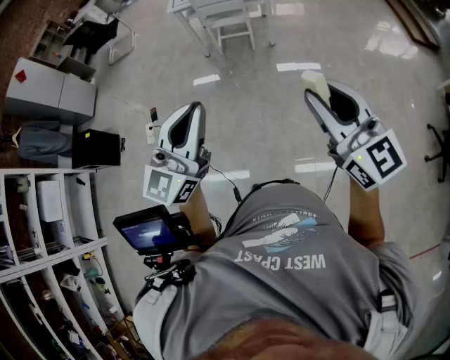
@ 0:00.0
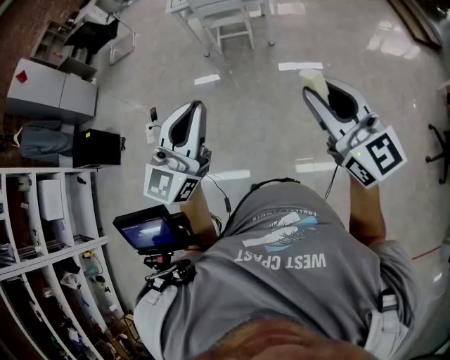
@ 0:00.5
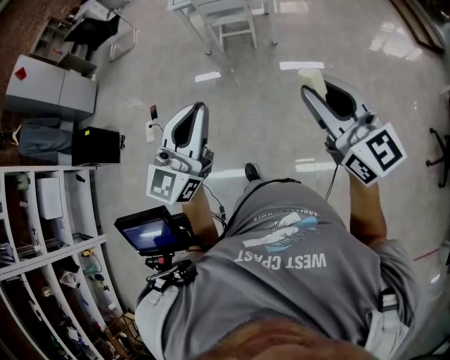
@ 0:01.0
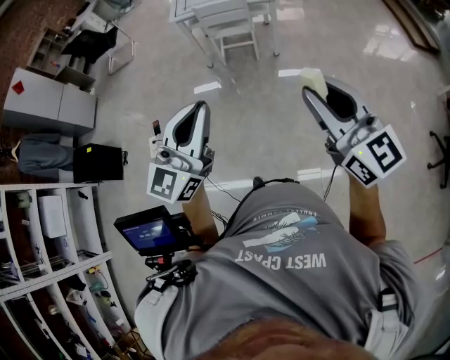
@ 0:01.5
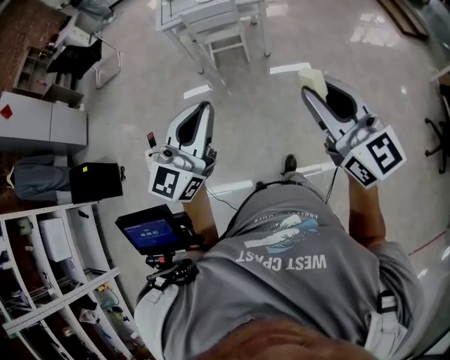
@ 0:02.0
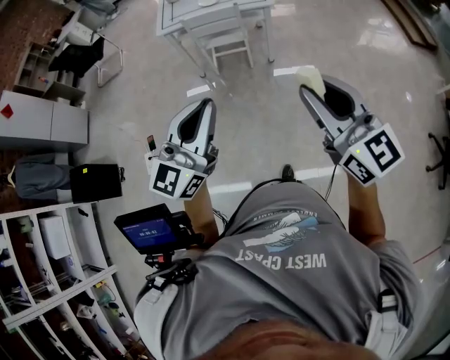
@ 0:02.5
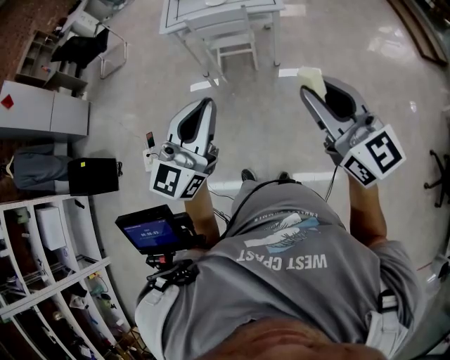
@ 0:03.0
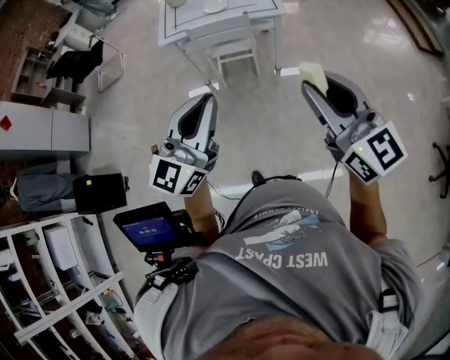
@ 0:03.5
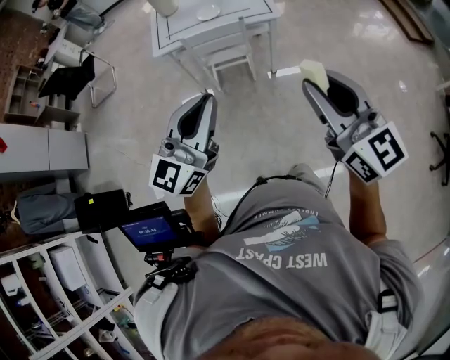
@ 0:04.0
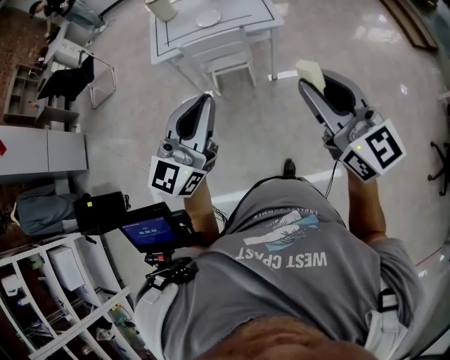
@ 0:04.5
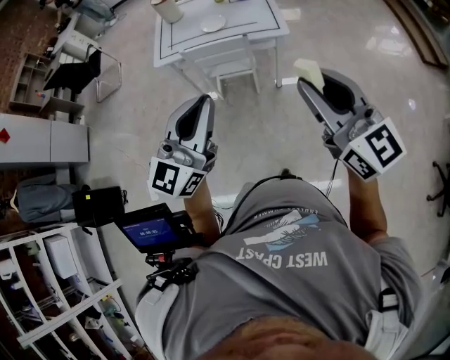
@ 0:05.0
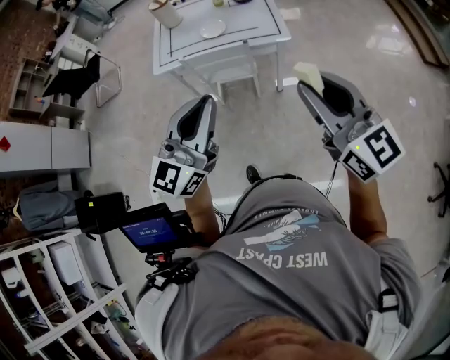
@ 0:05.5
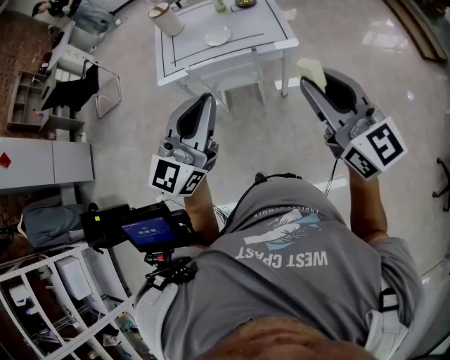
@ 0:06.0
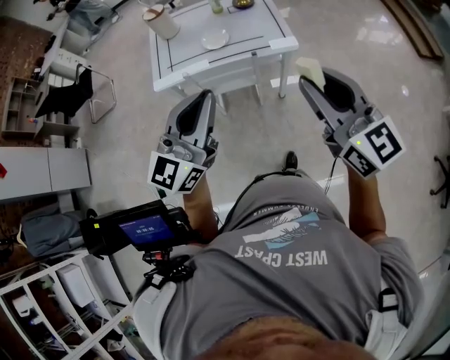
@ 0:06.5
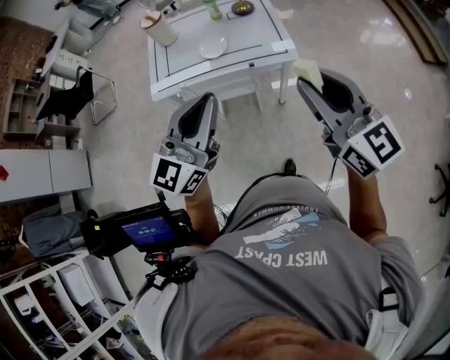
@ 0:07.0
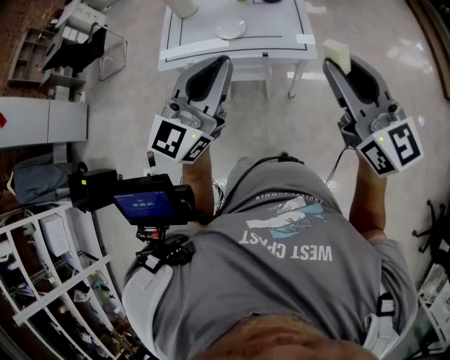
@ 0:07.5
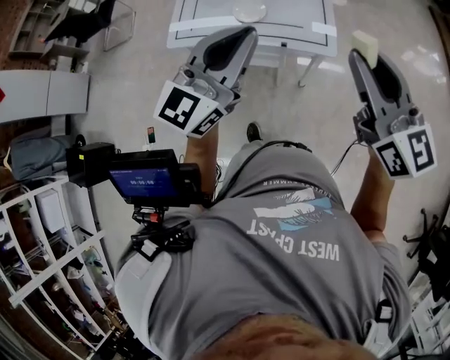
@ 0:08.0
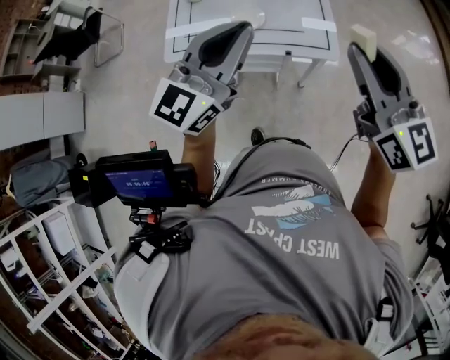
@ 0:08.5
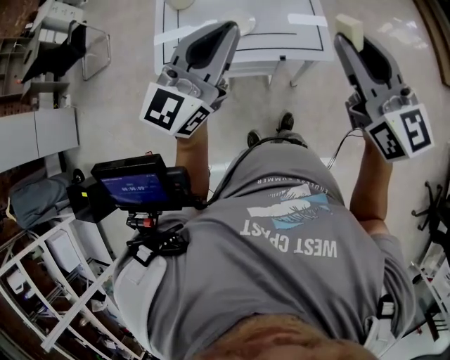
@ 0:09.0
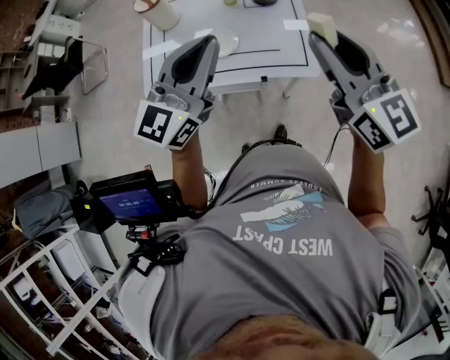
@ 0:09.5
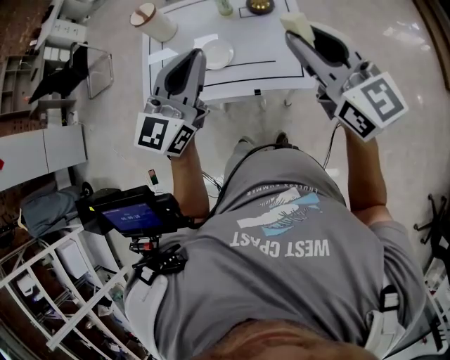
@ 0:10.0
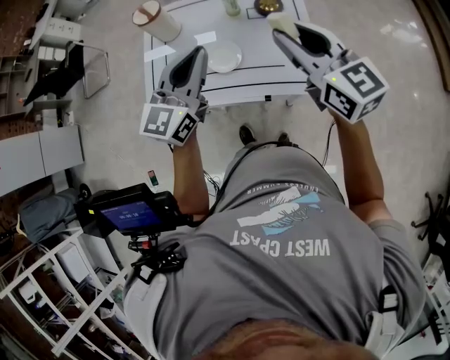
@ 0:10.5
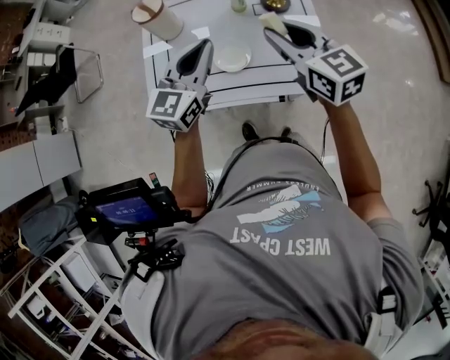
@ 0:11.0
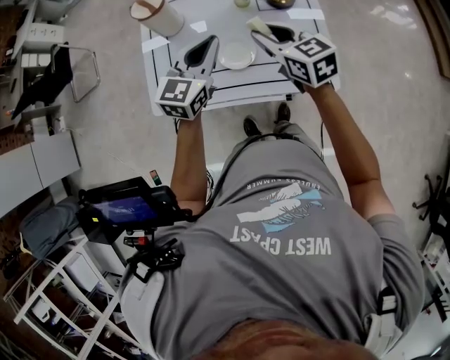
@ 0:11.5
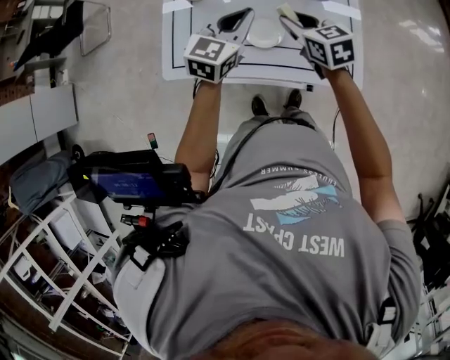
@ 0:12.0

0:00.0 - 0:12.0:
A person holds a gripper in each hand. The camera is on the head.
0:00.0 - 0:02.0: Both grippers move forward, approximately 15 cm.
0:02.0 - 0:04.0: Both grippers travel together forward, some 25 cm.
0:04.0 - 0:06.0: The two grippers go approximately 20 cm forward.
0:06.0 - 0:08.0: The two grippers go about 20 cm forward.
0:08.0 - 0:10.0: The grippers both shift forward by some 20 cm.
0:10.0 - 0:12.0: The two grippers go roughly 30 cm downward, forward and to the left. The right gripper angles its fingers downward, by about 30 degrees, while the left gripper swivels some 20 degrees.

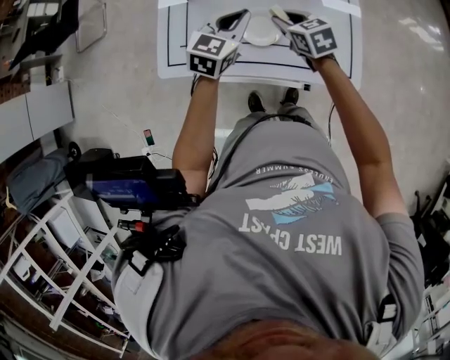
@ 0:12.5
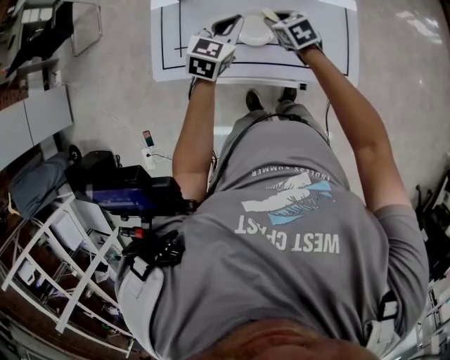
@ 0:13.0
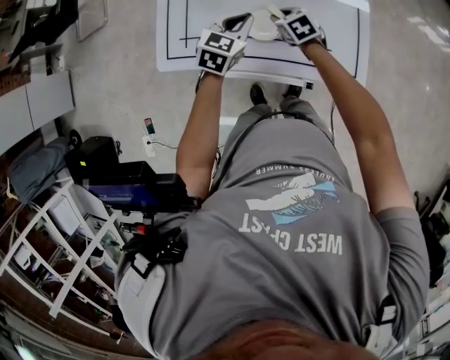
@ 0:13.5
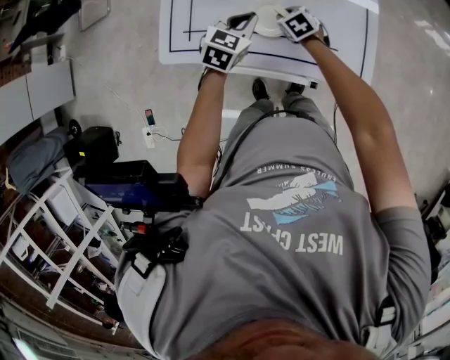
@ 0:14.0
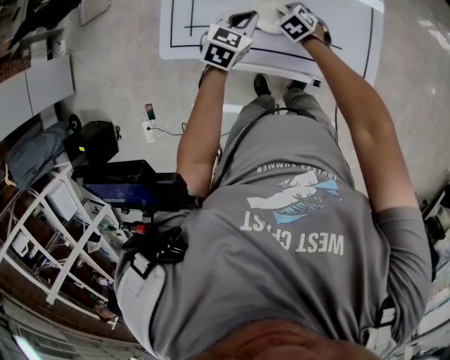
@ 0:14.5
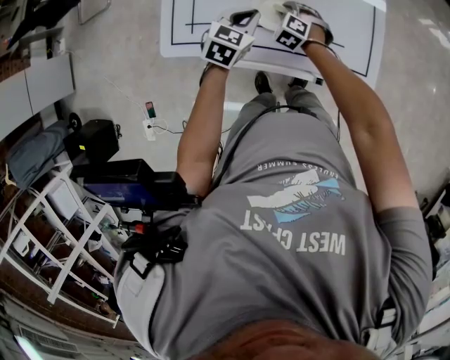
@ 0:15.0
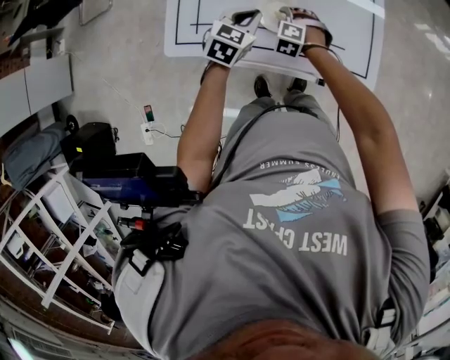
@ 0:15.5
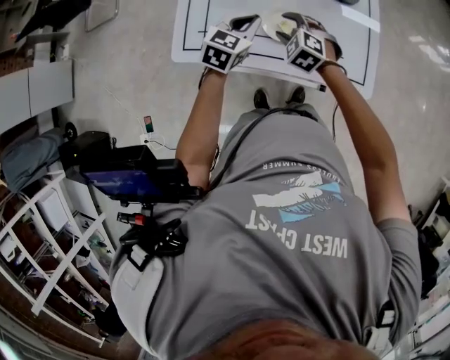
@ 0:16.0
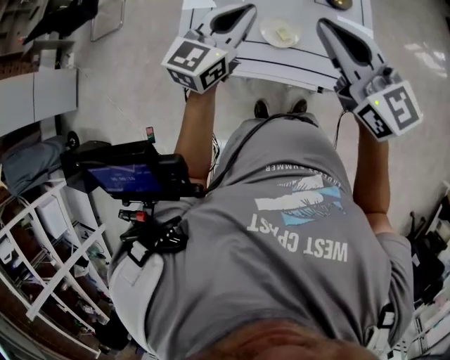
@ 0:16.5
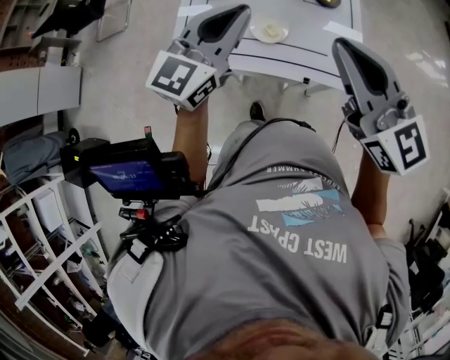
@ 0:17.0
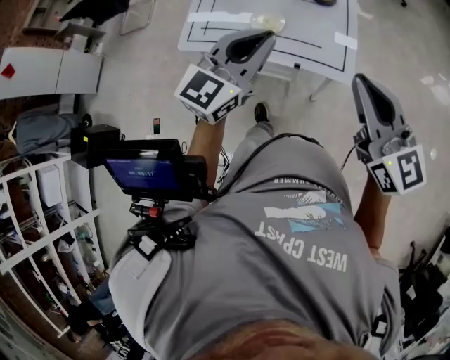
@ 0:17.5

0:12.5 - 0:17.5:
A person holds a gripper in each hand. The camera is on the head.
0:12.5 - 0:15.0: The left gripper shifts about 10 cm downward, while the right gripper travels downward by roughly 15 cm, and twists about 40 degrees counterclockwise, seen from behind.
0:15.0 - 0:17.5: The right gripper goes about 60 cm upward, backward and to the right, tips its fingers upward by roughly 60 degrees, and closes. Meanwhile the left gripper shifts approximately 40 cm upward and backward, and tilts its fingers approximately 40 degrees upward.

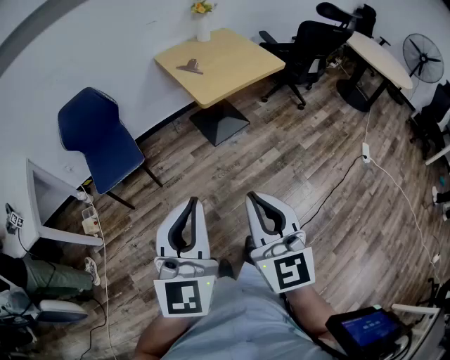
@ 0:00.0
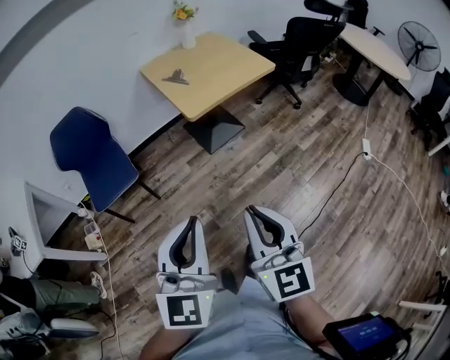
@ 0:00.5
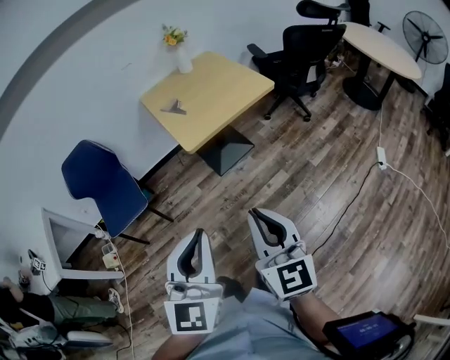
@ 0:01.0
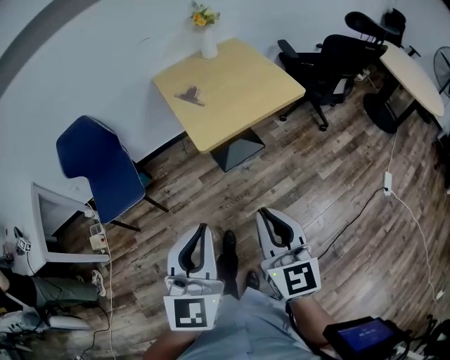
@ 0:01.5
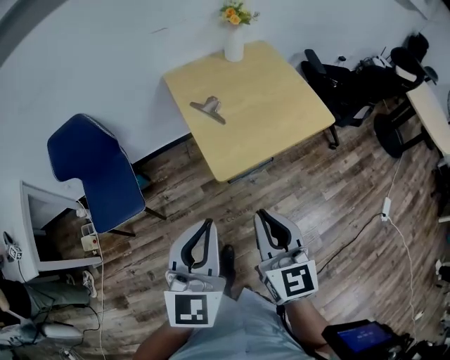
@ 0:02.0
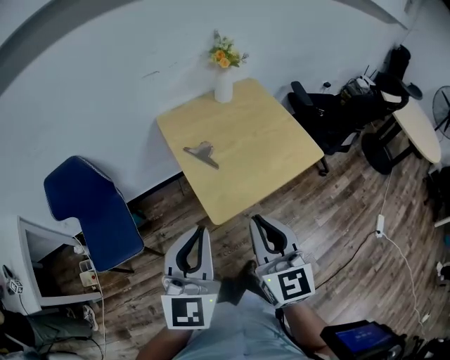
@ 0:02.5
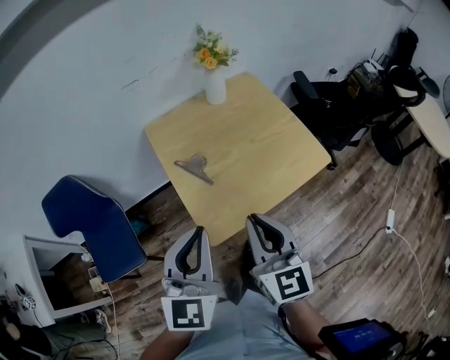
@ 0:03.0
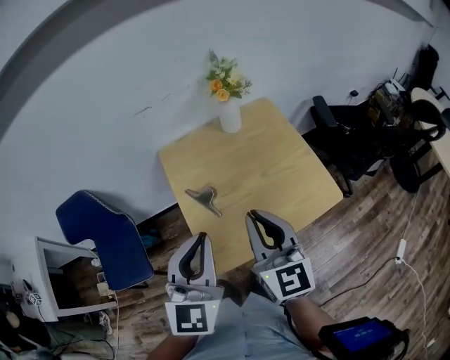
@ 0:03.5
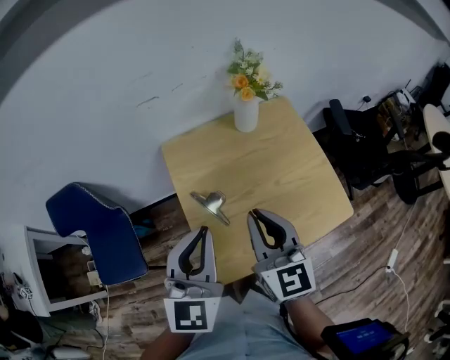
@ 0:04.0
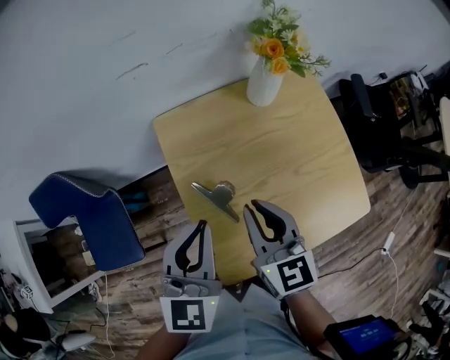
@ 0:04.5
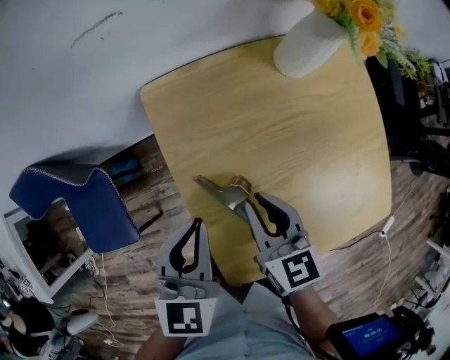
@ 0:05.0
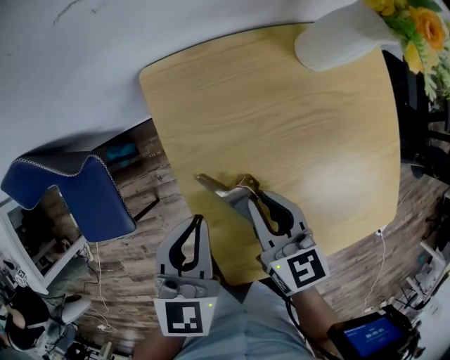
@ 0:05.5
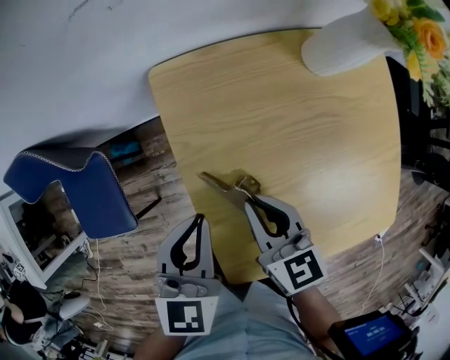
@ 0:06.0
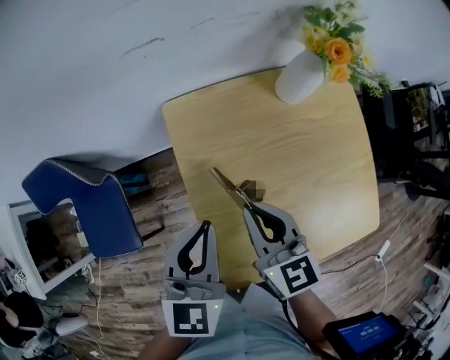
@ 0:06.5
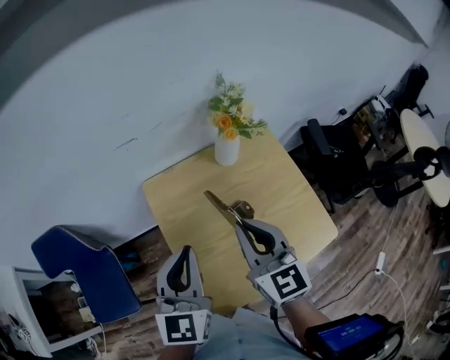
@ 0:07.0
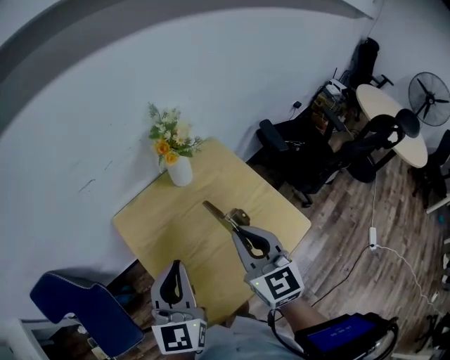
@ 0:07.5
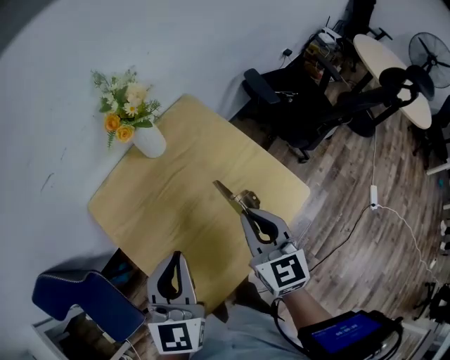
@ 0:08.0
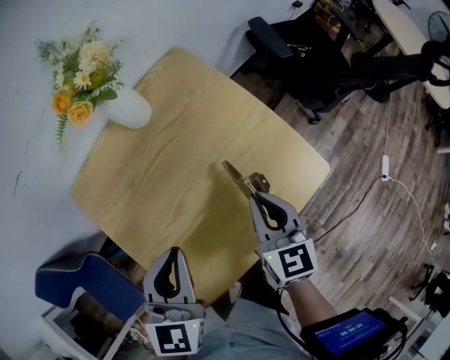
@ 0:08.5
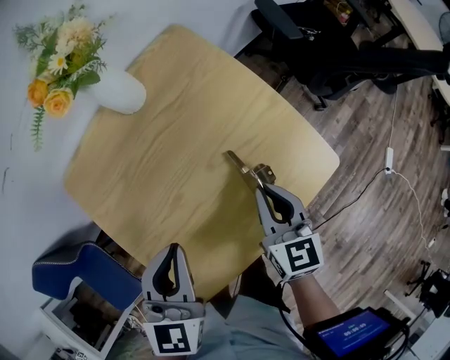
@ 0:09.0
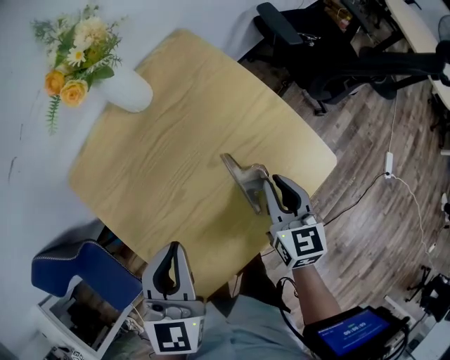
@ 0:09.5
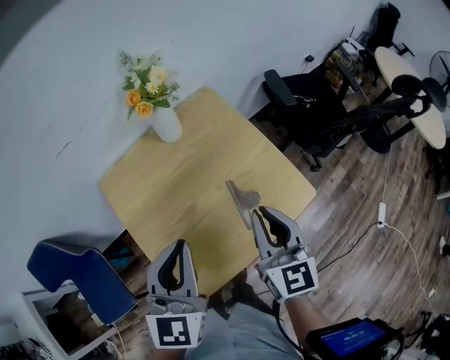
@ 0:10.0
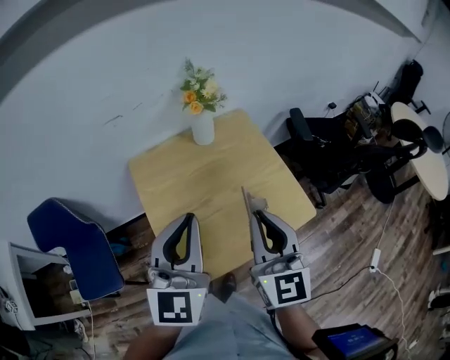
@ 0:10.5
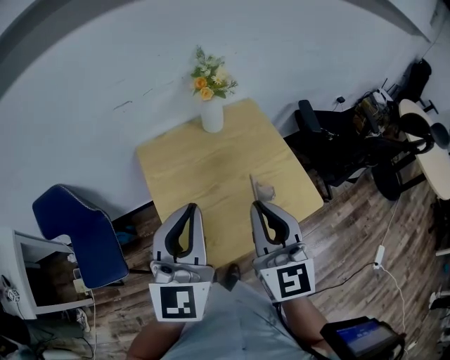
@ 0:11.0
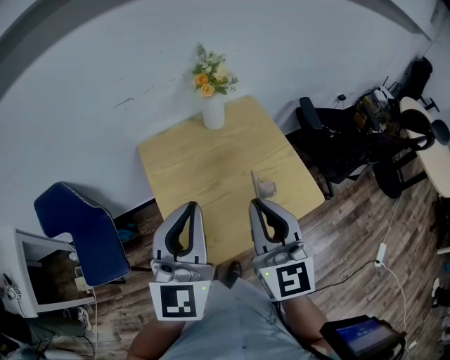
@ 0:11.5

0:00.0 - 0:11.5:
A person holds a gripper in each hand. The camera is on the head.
0:00.0 - 0:02.0: Both grippers are carried forward, roughly 50 cm.
0:02.0 - 0:04.0: The grippers both shift forward by about 40 cm.
0:04.0 - 0:06.0: The two grippers go about 30 cm downward and forward. The right gripper rotates about 30 degrees, while the left gripper turns by roughly 30 degrees.
0:06.0 - 0:07.5: Both grippers move upward and to the right, roughly 35 cm. The left gripper rotates roughly 30 degrees; the right gripper turns by some 40 degrees.
0:07.5 - 0:09.5: The right gripper heads downward and to the right, covering some 30 cm, and changes its angle by about 30 degrees. The left gripper travels downward and to the right by some 20 cm, and turns by approximately 20 degrees.
0:09.5 - 0:11.5: The left gripper travels upward and backward by some 25 cm, and changes its angle by about 30 degrees, while the right gripper moves upward, backward and to the left, some 35 cm, and swivels roughly 40 degrees.
